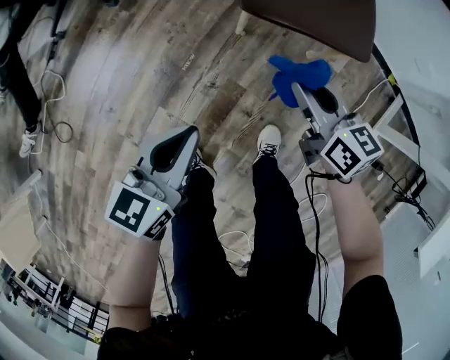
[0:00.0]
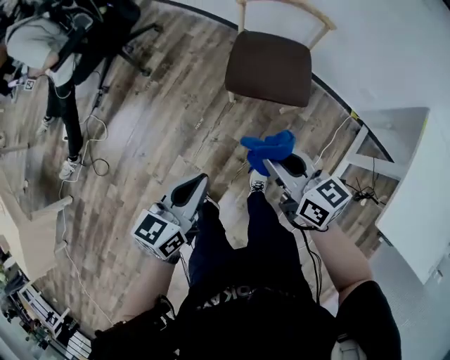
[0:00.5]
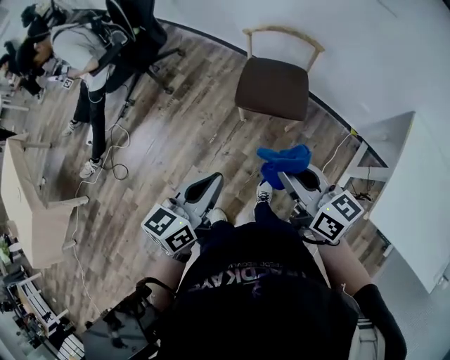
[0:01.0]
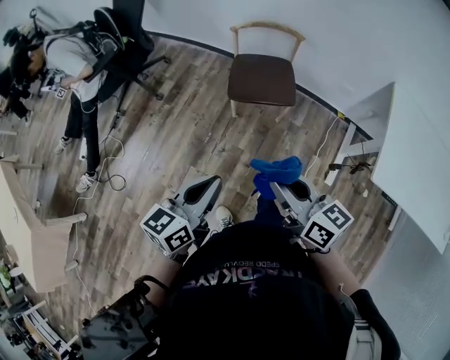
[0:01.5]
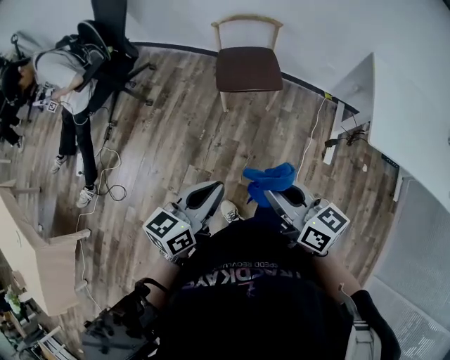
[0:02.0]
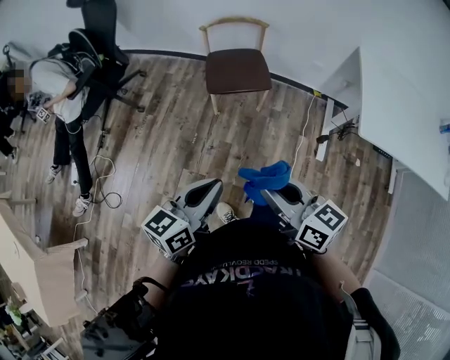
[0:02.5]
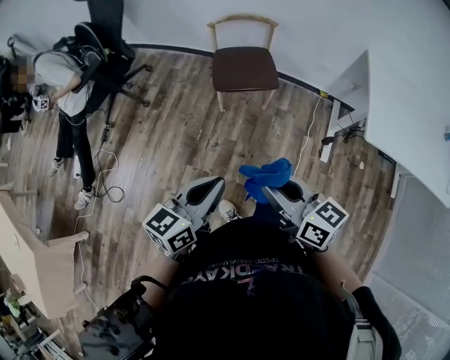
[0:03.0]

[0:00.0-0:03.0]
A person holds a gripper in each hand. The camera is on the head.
0:00.0 to 0:01.5: The grippers both shift upward and backward by approximately 50 cm.
0:01.5 to 0:03.0: The two grippers go roughly 10 cm backward.

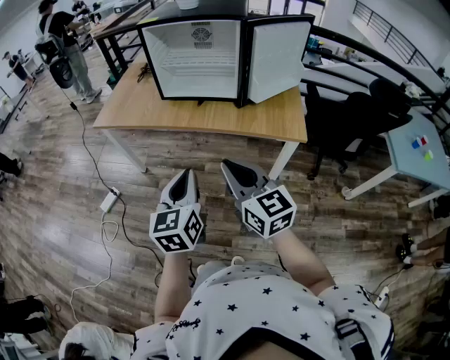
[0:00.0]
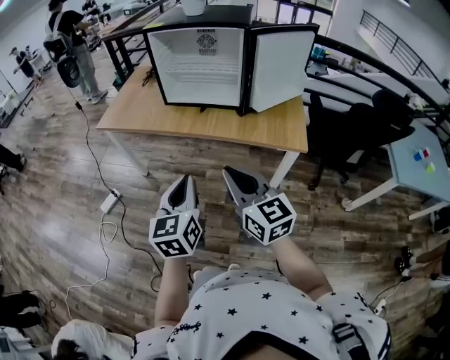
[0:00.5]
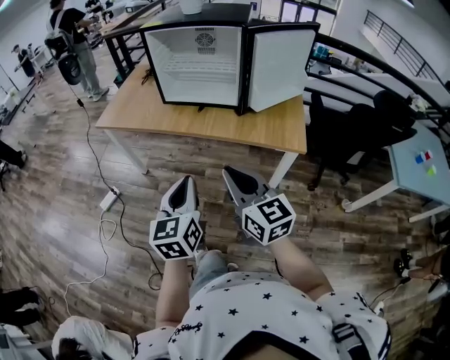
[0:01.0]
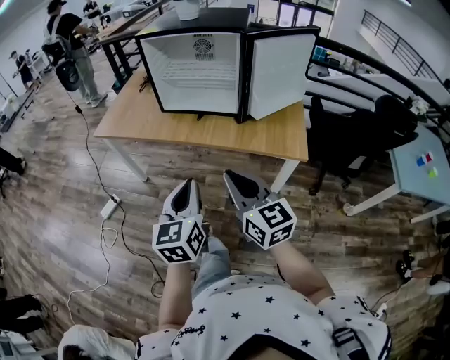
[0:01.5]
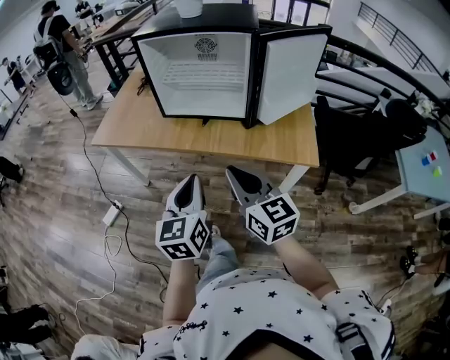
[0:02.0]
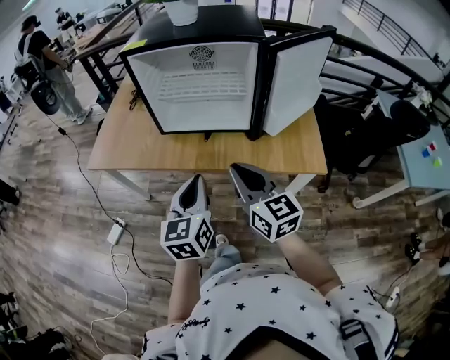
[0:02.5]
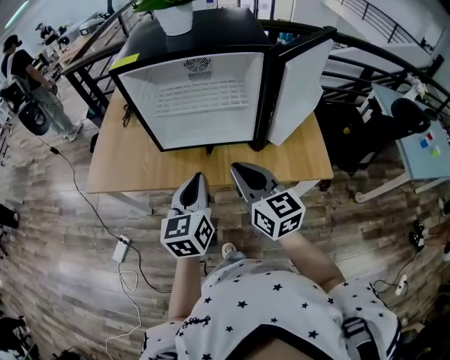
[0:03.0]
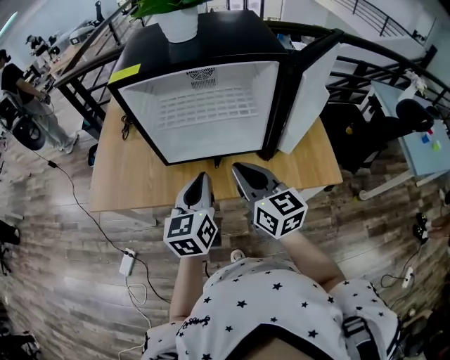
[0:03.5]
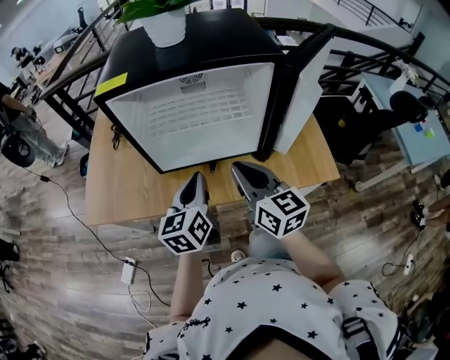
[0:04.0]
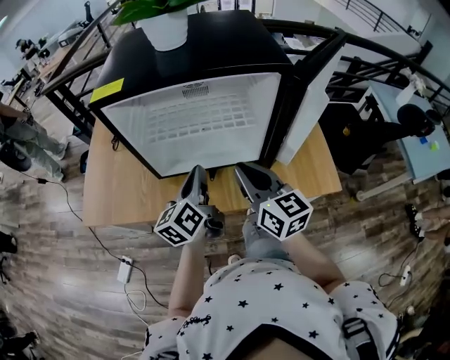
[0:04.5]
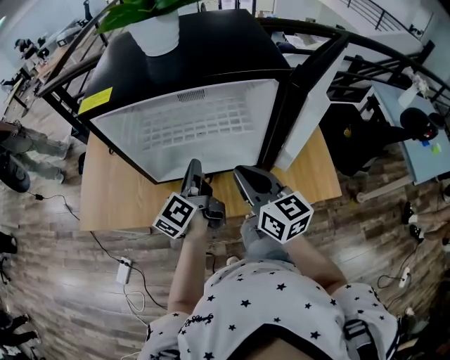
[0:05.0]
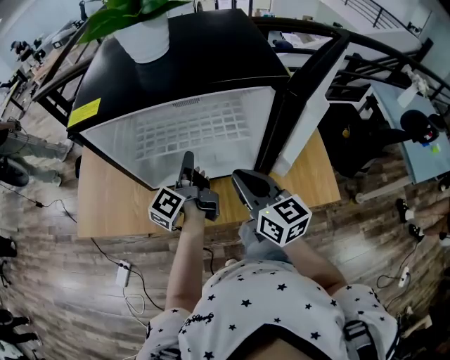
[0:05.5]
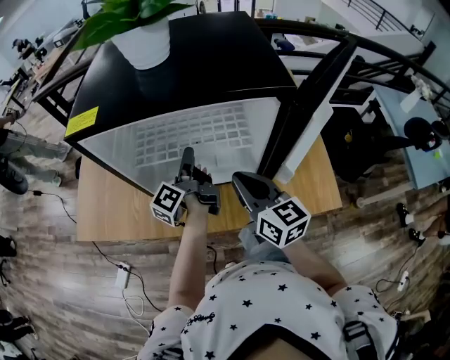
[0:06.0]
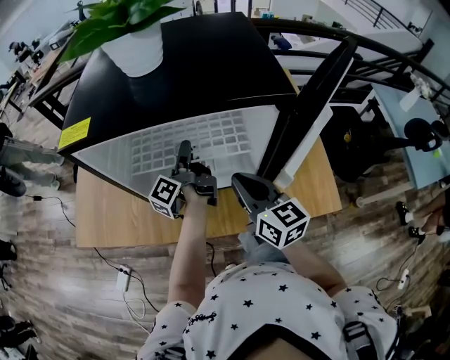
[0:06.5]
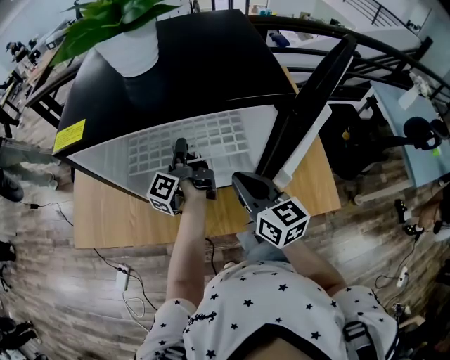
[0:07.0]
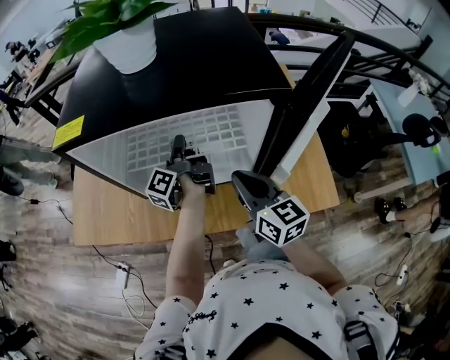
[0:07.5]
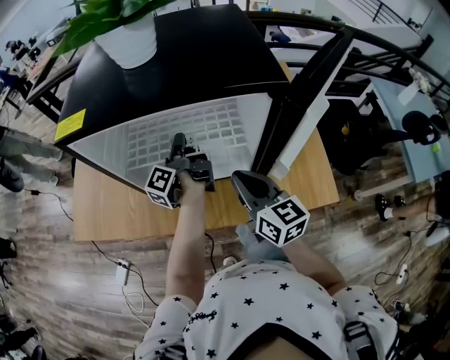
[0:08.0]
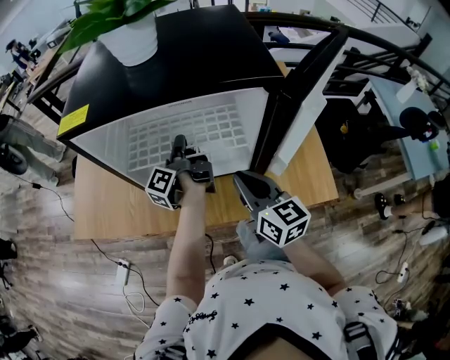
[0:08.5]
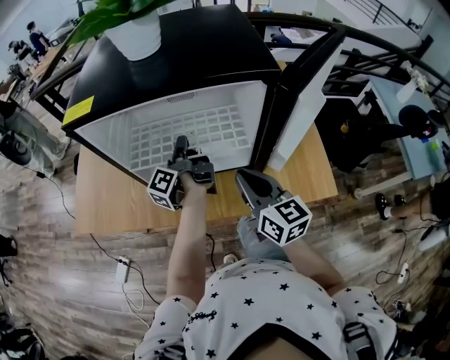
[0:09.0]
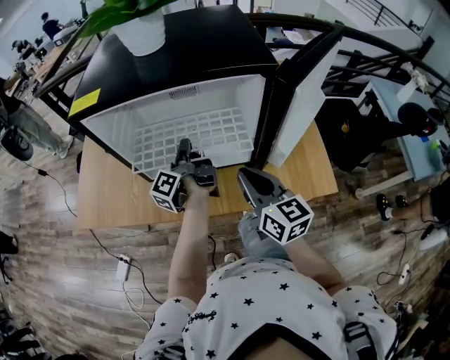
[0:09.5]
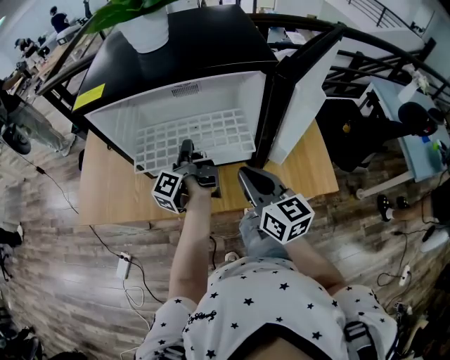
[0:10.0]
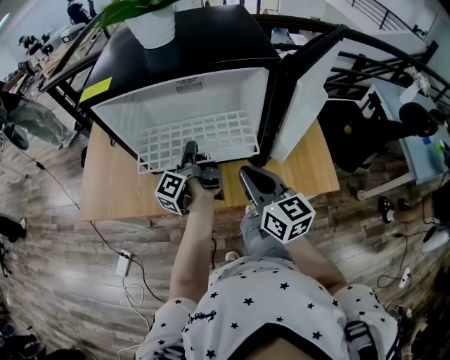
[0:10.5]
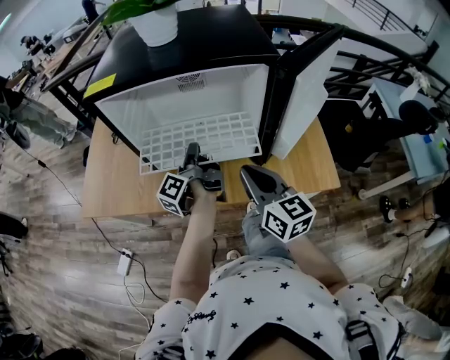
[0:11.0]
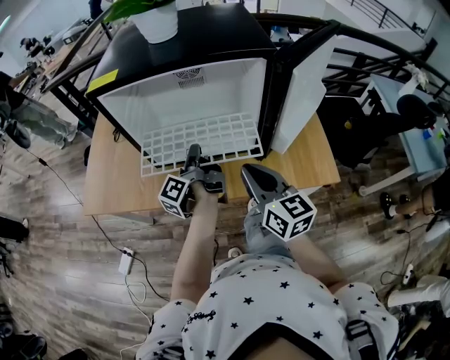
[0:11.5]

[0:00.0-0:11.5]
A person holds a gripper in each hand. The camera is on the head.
0:00.0 to 0:02.0: The right gripper moves about 10 cm.
0:02.0 to 0:04.0: The right gripper ends up some 25 cm from where it was.
0:04.0 to 0:06.0: The right gripper shifts by roughly 10 cm.
0:07.5 to 0:09.5: The right gripper ends up about 5 cm from where it was.

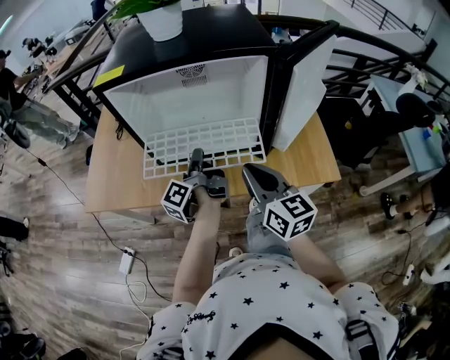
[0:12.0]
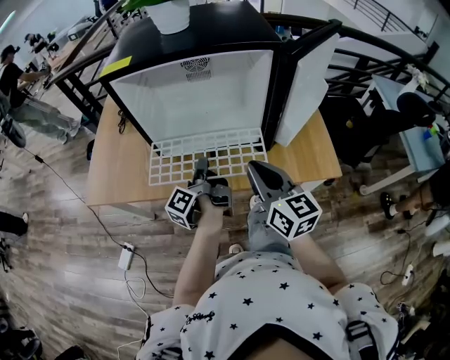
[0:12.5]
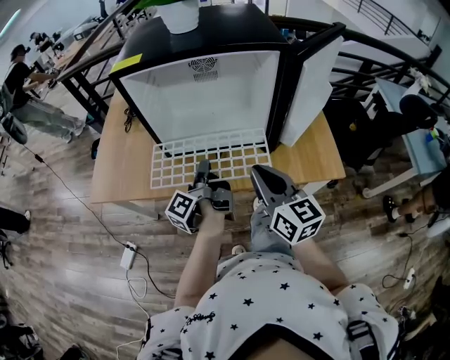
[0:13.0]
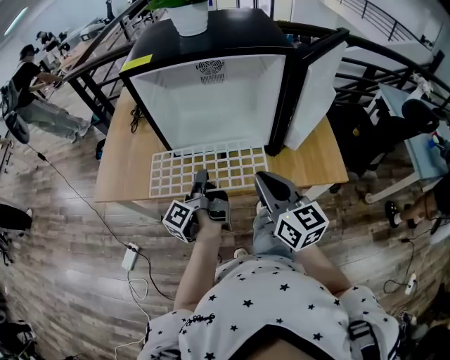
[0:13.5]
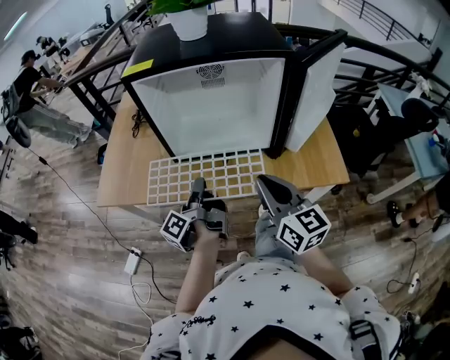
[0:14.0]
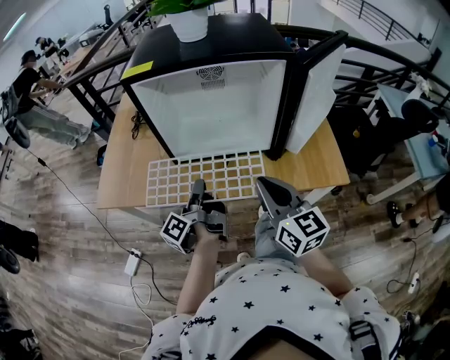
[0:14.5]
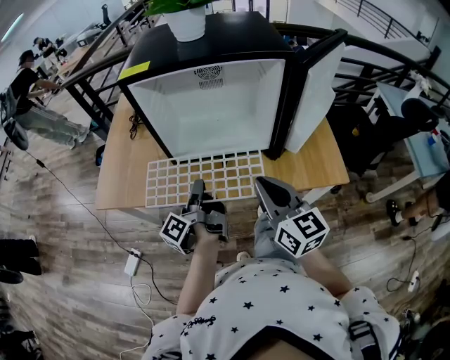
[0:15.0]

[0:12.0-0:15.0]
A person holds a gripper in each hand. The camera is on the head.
0:12.0 to 0:13.5: The right gripper ends up some 5 cm from where it was.

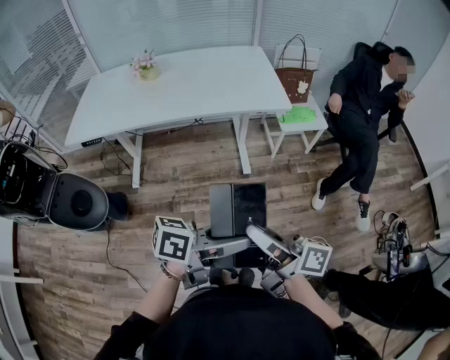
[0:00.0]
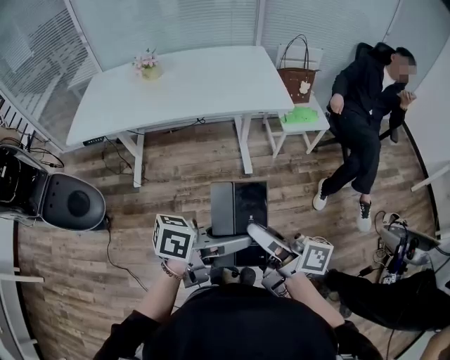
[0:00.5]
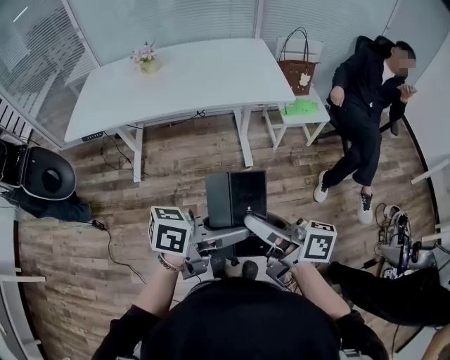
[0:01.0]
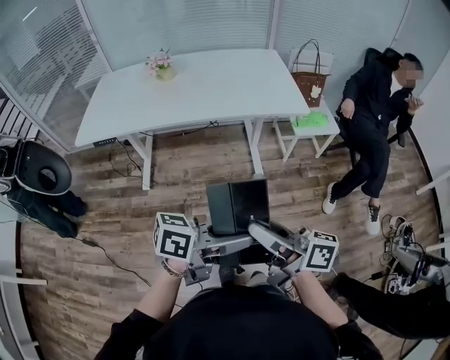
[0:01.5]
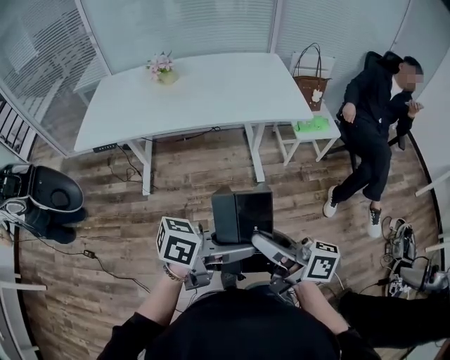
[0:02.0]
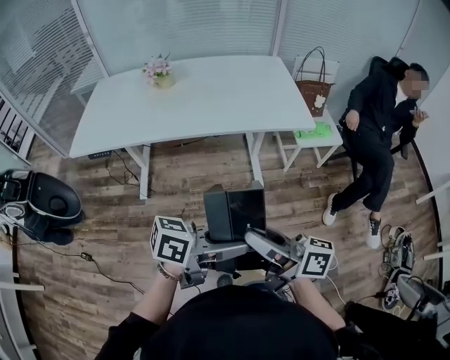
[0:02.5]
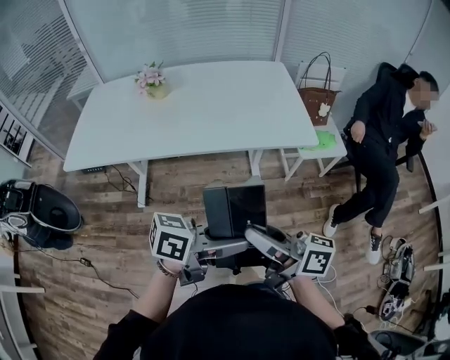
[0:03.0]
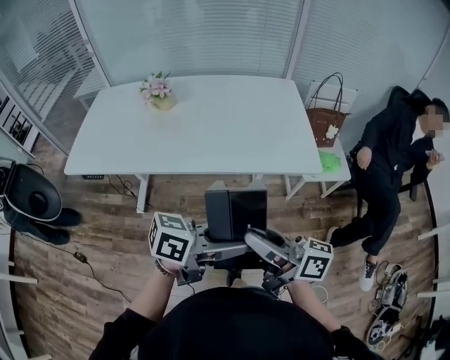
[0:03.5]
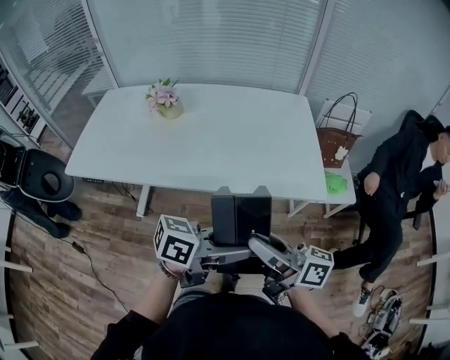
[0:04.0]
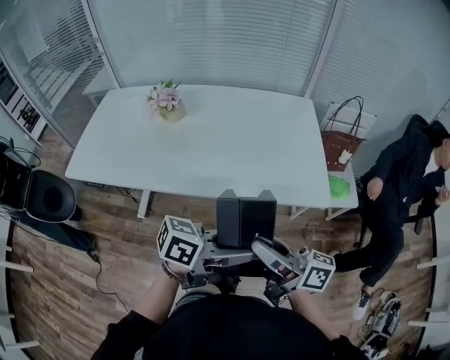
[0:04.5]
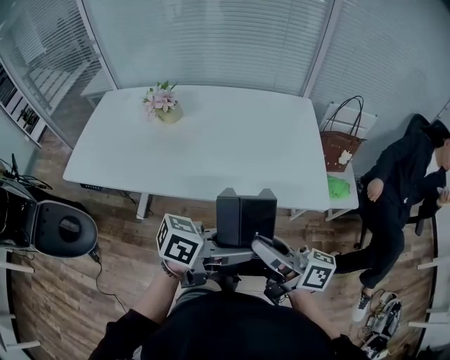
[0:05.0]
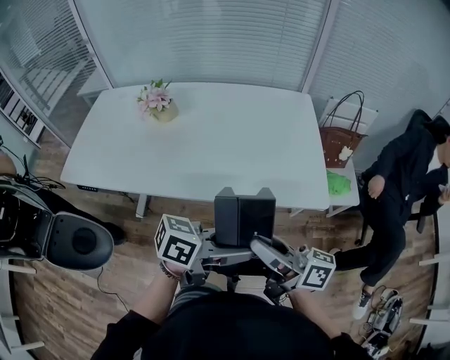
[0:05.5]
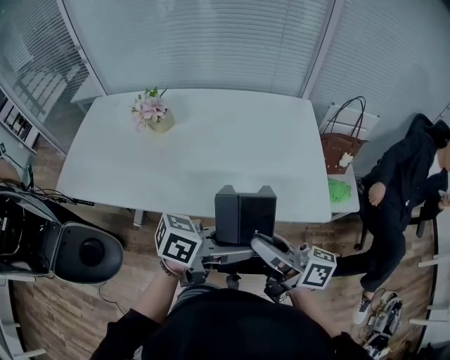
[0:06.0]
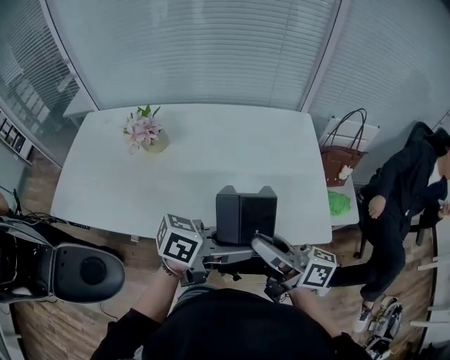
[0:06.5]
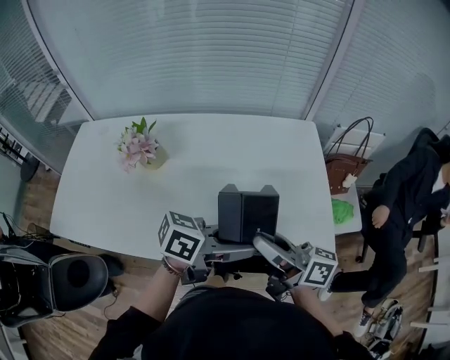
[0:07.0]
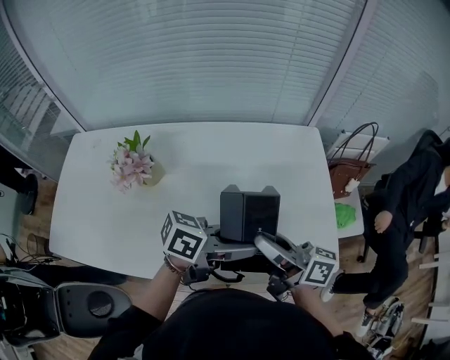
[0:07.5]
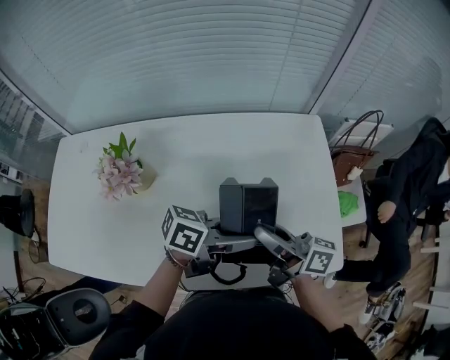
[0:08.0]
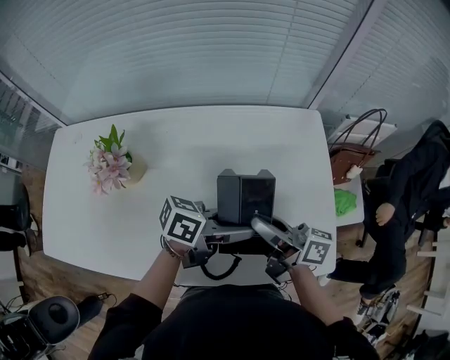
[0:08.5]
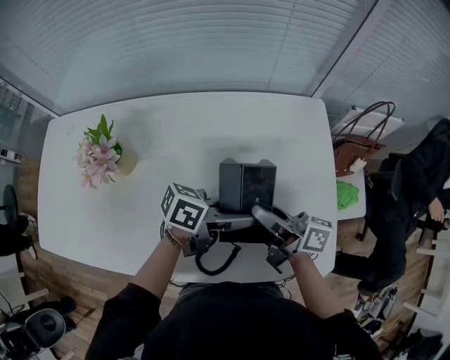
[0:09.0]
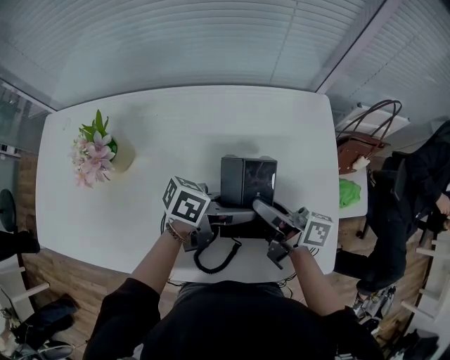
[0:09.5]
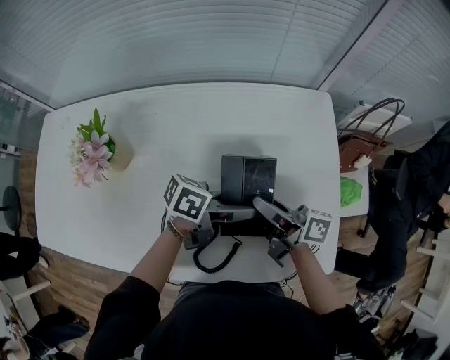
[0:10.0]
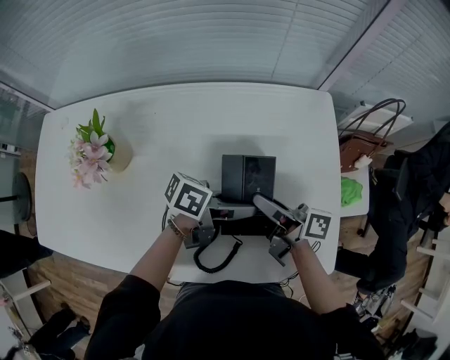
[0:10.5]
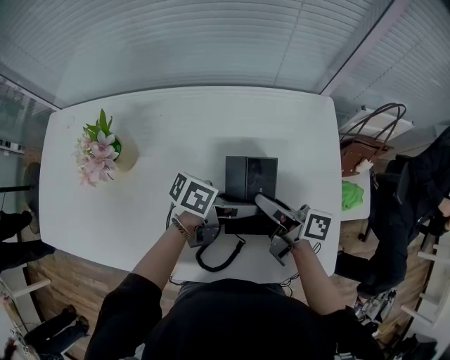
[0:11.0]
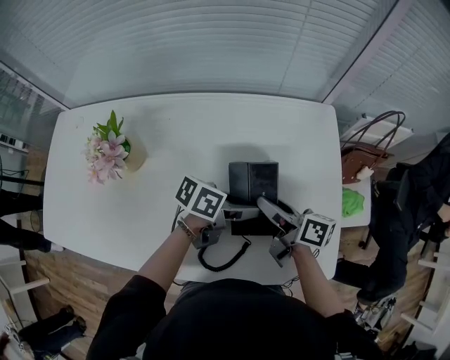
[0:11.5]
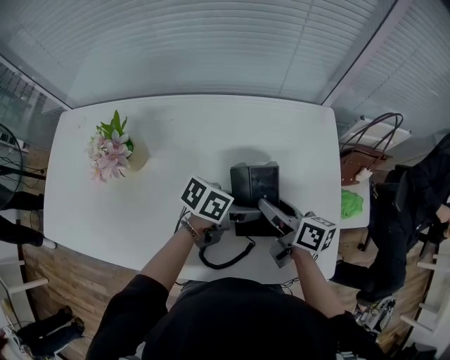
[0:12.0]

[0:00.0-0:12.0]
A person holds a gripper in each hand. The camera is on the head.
0:00.0 to 0:02.0: The right gripper changes place by some 10 cm. Meanwhile the left gripper moves some 10 cm.
0:02.0 to 0:04.0: The right gripper changes place by roughly 30 cm. The left gripper shifts by about 30 cm.
0:04.0 to 0:06.0: The left gripper changes place by approximately 10 cm. Meanwhile the right gripper changes place by about 10 cm.
0:06.0 to 0:08.0: The left gripper changes place by approximately 25 cm; the right gripper shifts by about 25 cm.
0:08.0 to 0:10.0: The grippers both shift downward by about 10 cm.
0:10.0 to 0:12.0: The left gripper opens its fingers; the right gripper turns by approximately 20 degrees.
